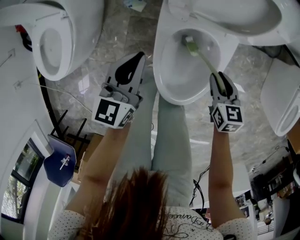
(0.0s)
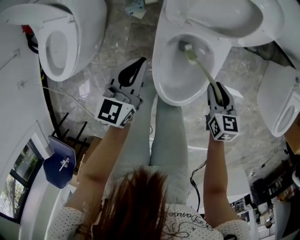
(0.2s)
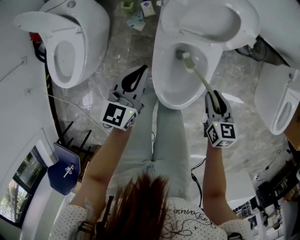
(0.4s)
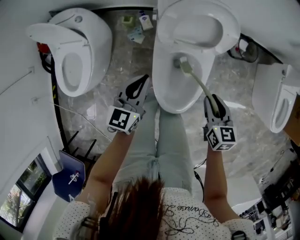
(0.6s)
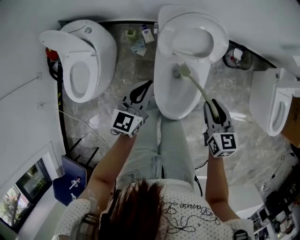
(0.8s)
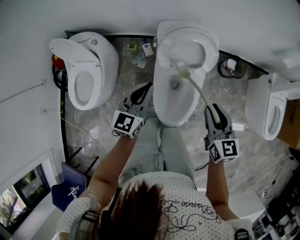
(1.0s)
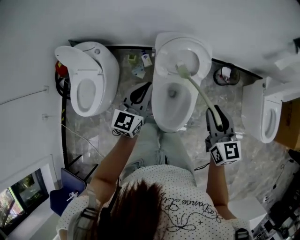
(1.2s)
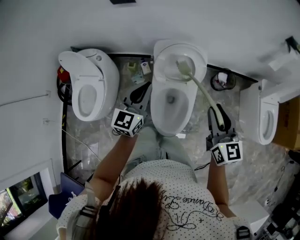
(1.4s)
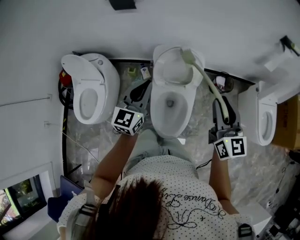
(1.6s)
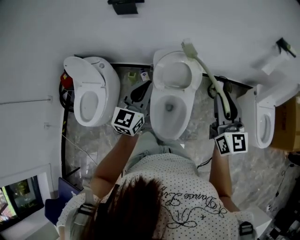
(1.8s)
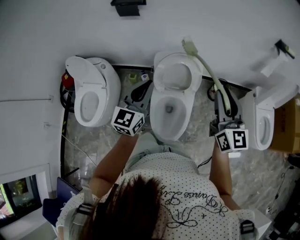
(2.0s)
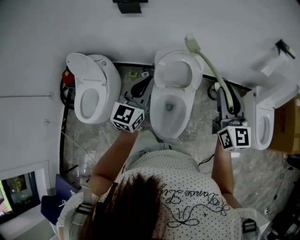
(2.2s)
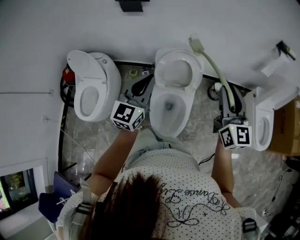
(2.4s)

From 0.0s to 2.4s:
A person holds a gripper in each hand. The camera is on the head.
From 0.0s to 1.2s: Both grippers move upward, roughly 35 cm. The right gripper swivels some 30 degrees.
From 1.2s to 2.4s: The grippers both shift upward by approximately 15 cm. The right gripper turns by roughly 20 degrees.

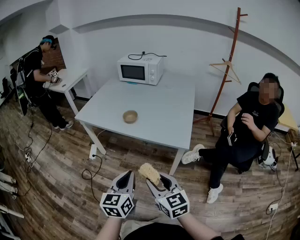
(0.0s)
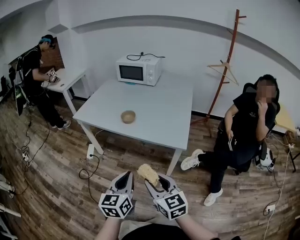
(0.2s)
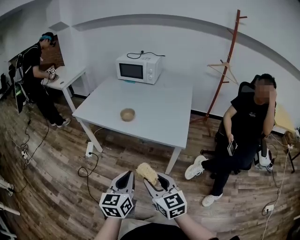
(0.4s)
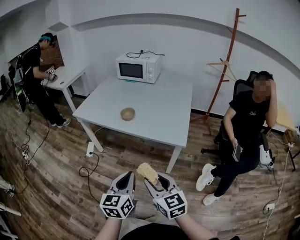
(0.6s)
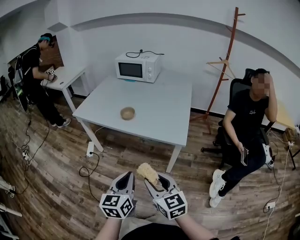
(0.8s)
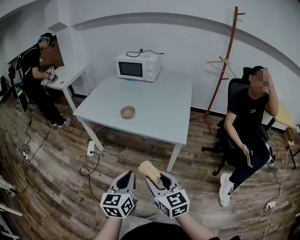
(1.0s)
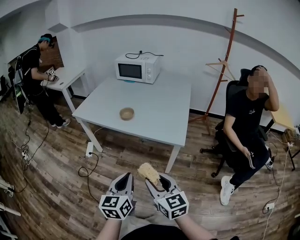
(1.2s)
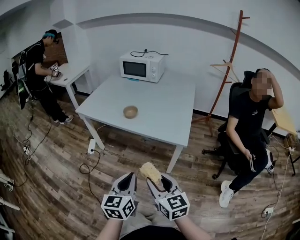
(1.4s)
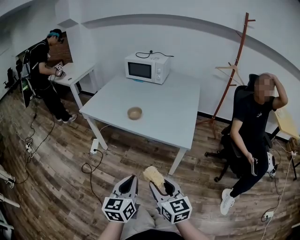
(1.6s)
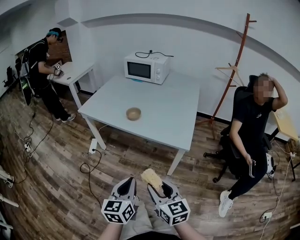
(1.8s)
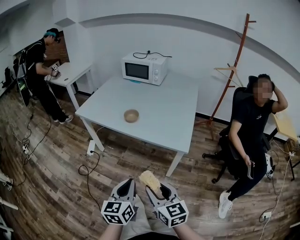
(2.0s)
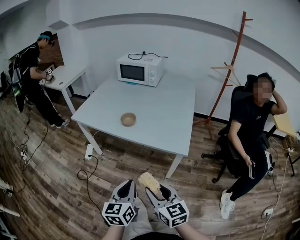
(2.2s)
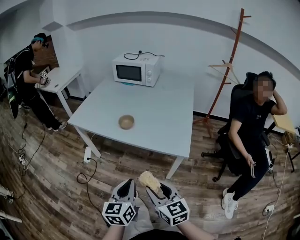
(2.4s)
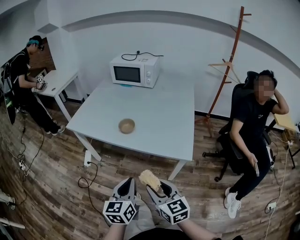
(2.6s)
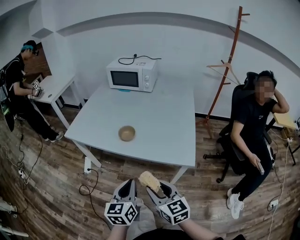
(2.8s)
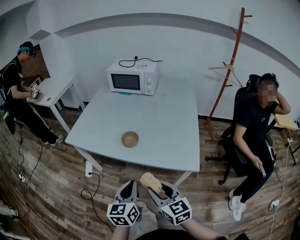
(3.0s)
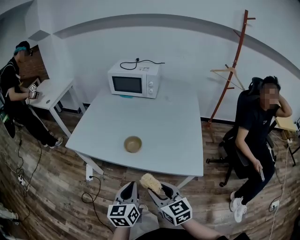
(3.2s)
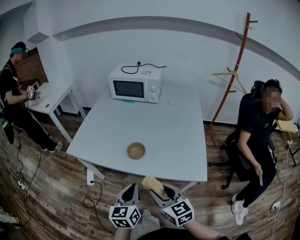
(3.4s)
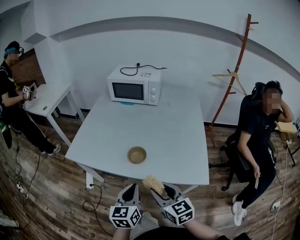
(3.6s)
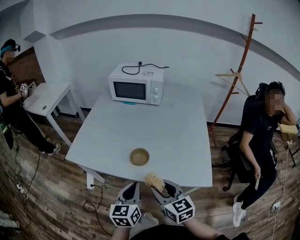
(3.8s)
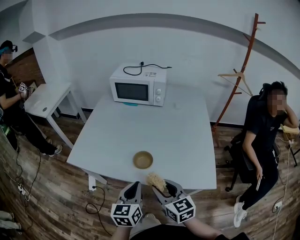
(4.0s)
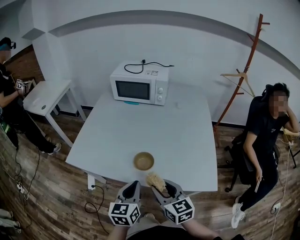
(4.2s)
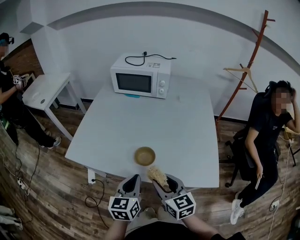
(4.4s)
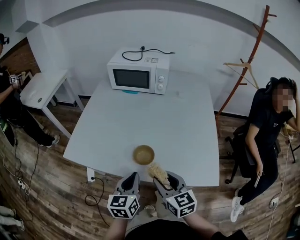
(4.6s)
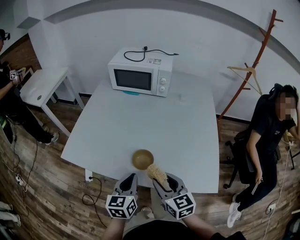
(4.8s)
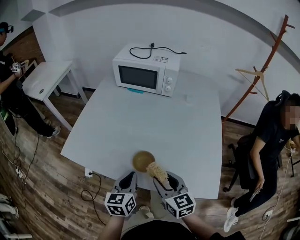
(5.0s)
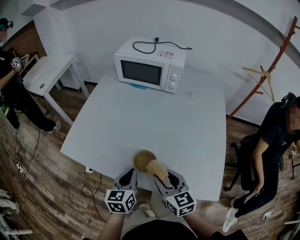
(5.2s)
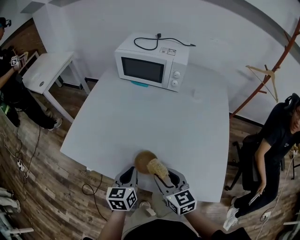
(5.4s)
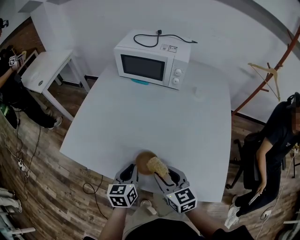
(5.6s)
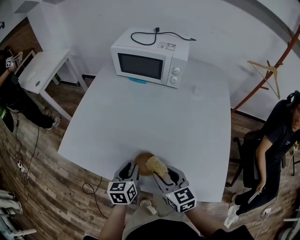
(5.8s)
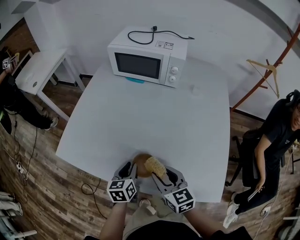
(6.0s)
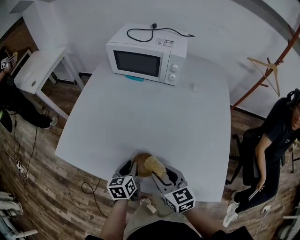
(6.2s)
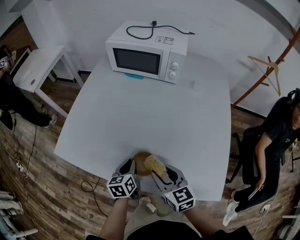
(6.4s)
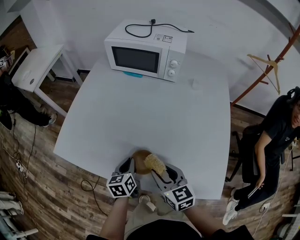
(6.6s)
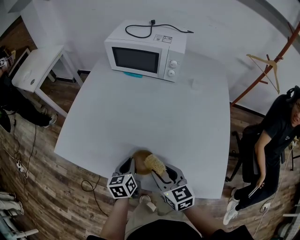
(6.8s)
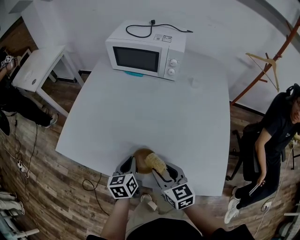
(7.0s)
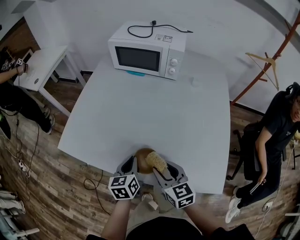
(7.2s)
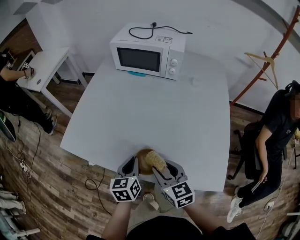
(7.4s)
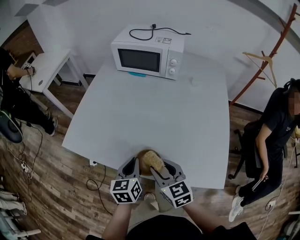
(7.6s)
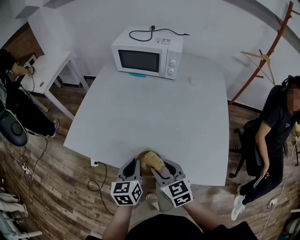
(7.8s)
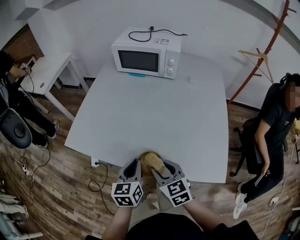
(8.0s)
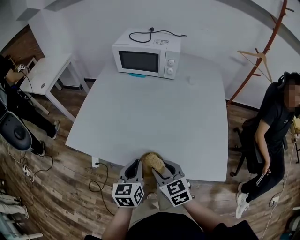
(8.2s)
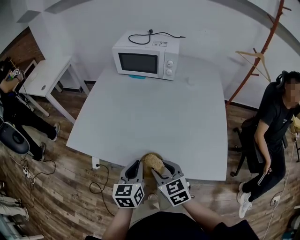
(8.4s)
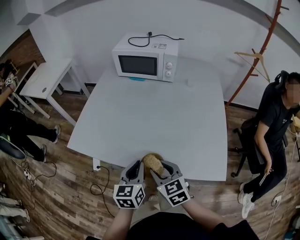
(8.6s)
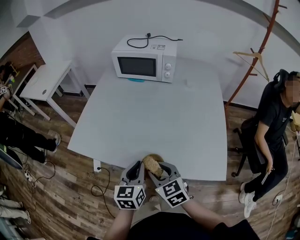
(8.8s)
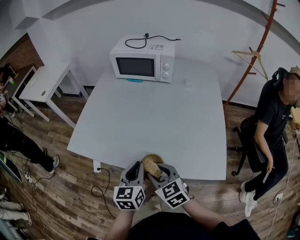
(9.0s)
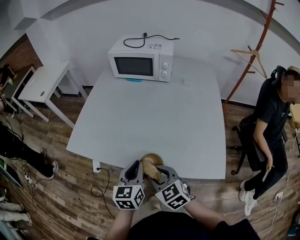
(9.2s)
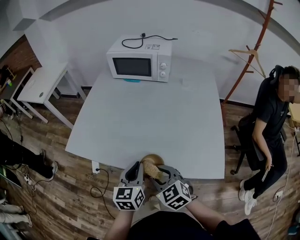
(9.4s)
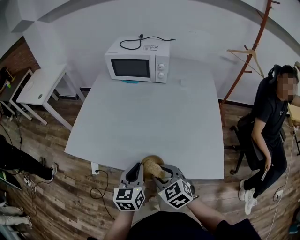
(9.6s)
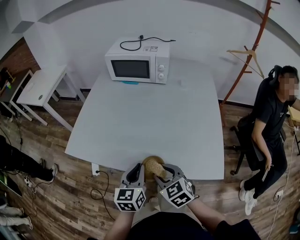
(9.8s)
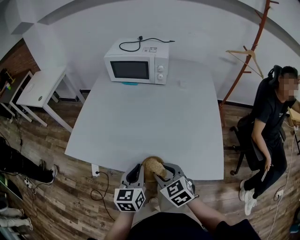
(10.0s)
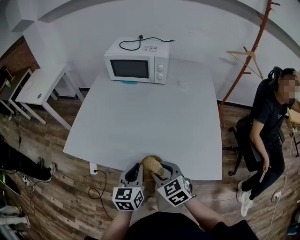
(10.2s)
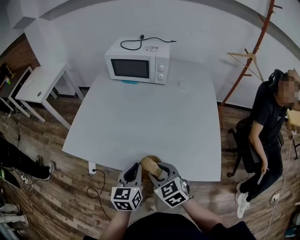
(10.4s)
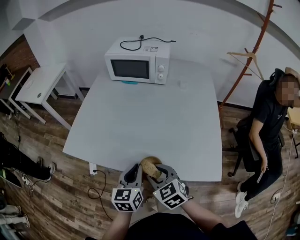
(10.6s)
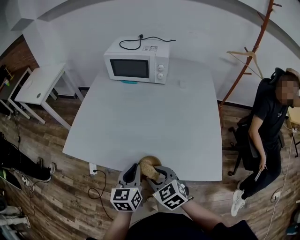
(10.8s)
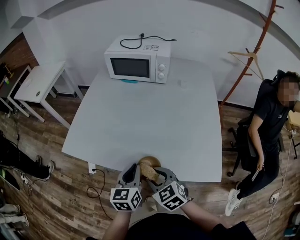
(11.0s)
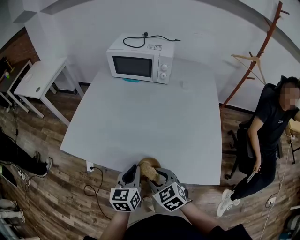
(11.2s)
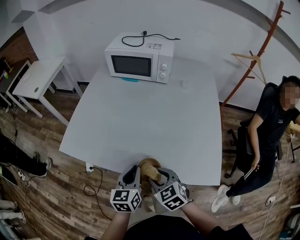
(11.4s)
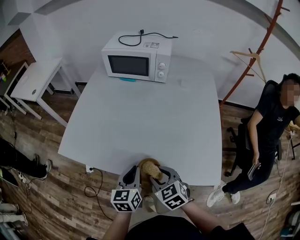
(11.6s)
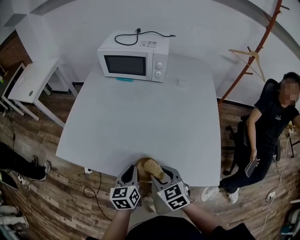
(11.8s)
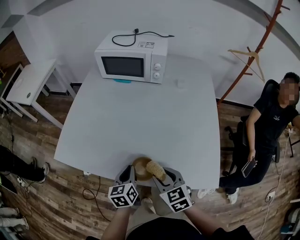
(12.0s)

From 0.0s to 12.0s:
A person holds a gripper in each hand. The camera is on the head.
From 0.0s to 1.6s: The grippers make only small movements.
From 1.6s to 3.0s: The two grippers go roughly 20 cm forward.
From 3.0s to 4.4s: The grippers both shift forward by about 20 cm.
From 4.4s to 6.0s: The left gripper heads downward and forward, covering about 20 cm, swivels some 20 degrees, and opens up, while the right gripper is displaced forward and downward by roughly 15 cm.
From 6.0s to 7.6s: The right gripper changes place by approximately 5 cm; the left gripper goes approximately 10 cm upward and backward.
From 7.6s to 9.0s: The right gripper moves roughly 5 cm. Meanwhile the left gripper goes some 5 cm backward.
From 9.0s to 10.4s: The grippers move only a little.
From 10.4s to 12.0s: The left gripper heads downward and forward, covering some 10 cm; the right gripper ends up roughly 5 cm from where it was.

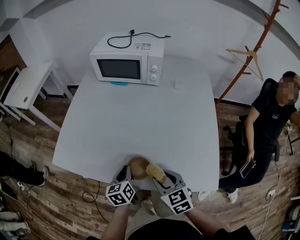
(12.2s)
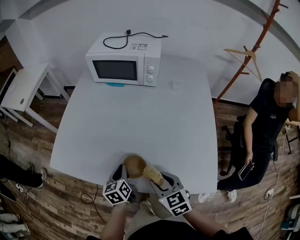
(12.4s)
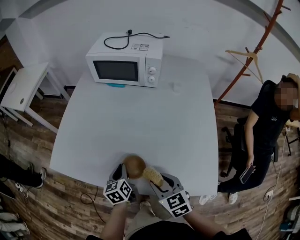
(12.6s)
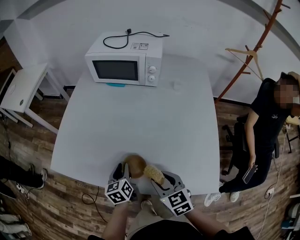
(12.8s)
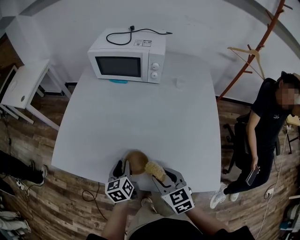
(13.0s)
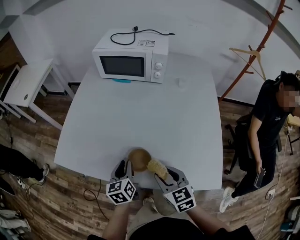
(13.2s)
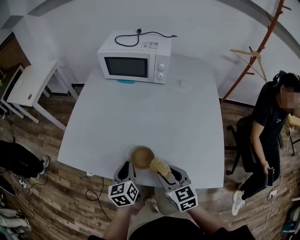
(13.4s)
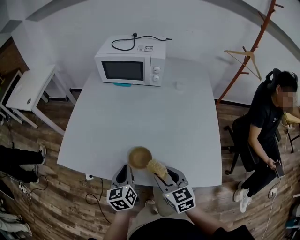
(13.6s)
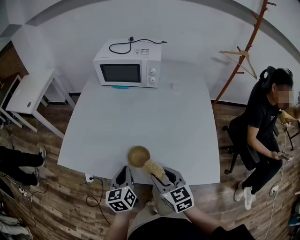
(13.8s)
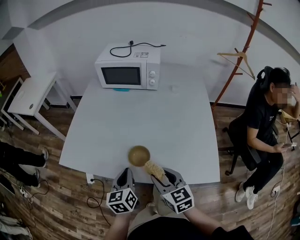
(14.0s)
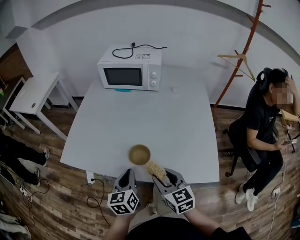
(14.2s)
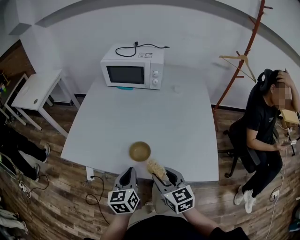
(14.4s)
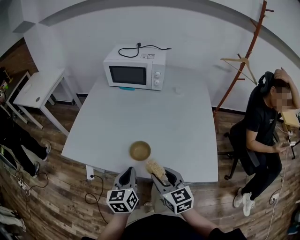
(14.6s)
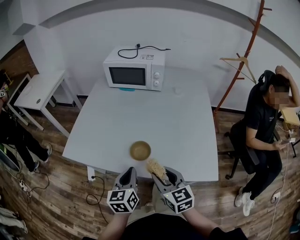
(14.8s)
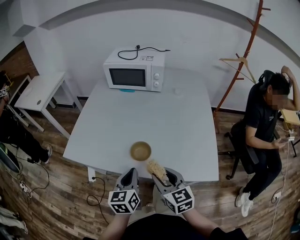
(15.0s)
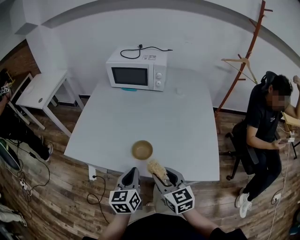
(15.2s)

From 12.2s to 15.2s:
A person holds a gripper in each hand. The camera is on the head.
From 12.2s to 13.8s: The left gripper moves upward, some 5 cm.
From 13.8s to 15.2s: The left gripper moves backward, some 5 cm. The right gripper changes place by some 5 cm.

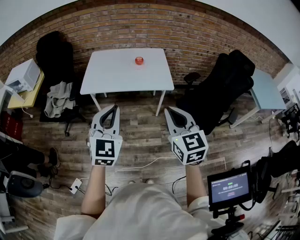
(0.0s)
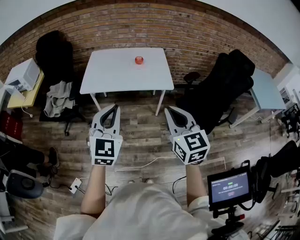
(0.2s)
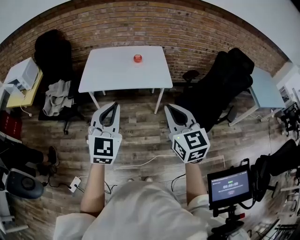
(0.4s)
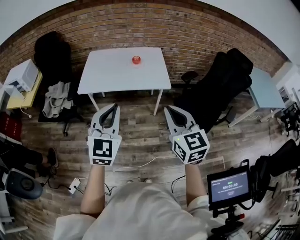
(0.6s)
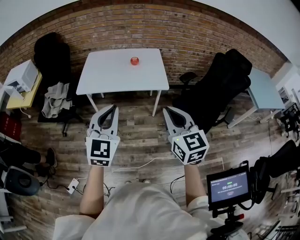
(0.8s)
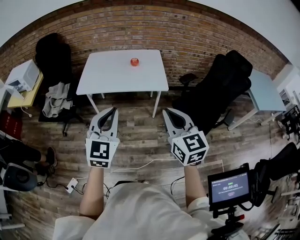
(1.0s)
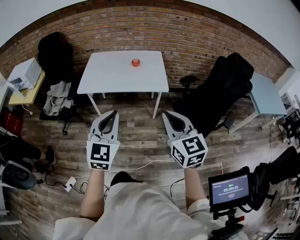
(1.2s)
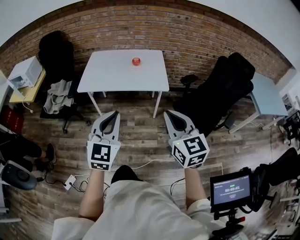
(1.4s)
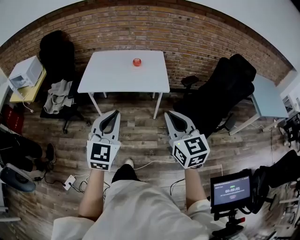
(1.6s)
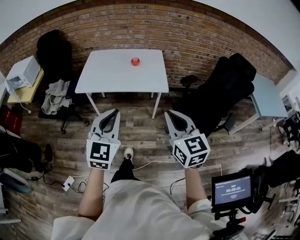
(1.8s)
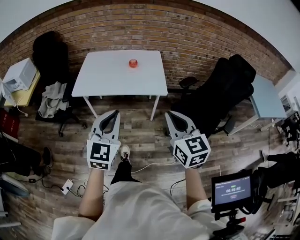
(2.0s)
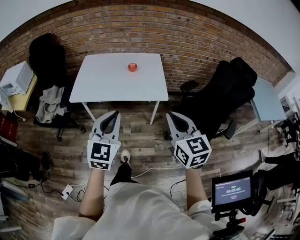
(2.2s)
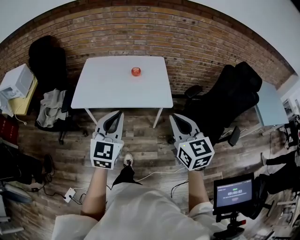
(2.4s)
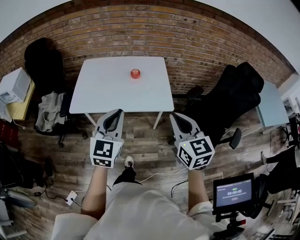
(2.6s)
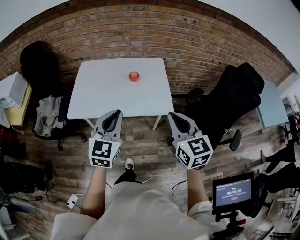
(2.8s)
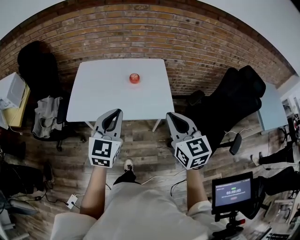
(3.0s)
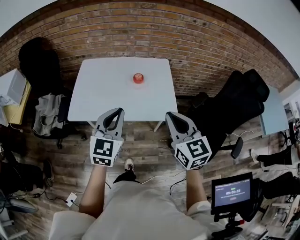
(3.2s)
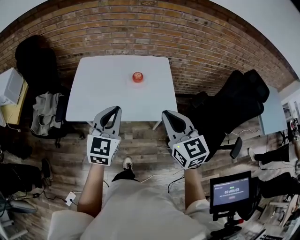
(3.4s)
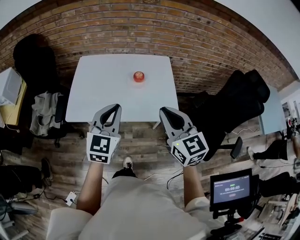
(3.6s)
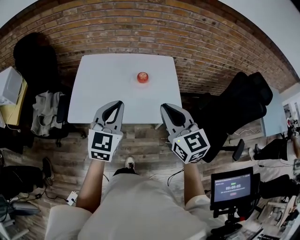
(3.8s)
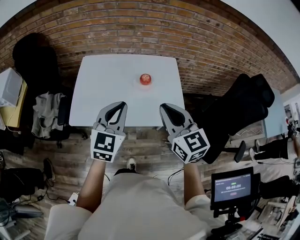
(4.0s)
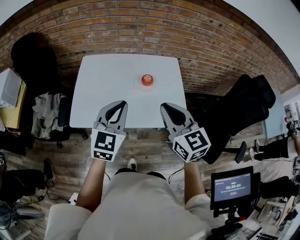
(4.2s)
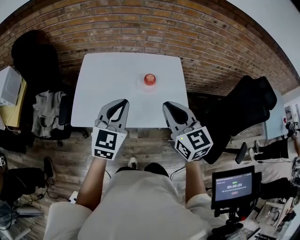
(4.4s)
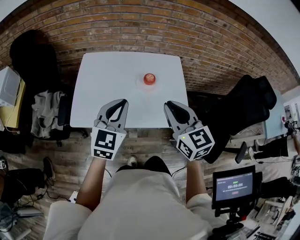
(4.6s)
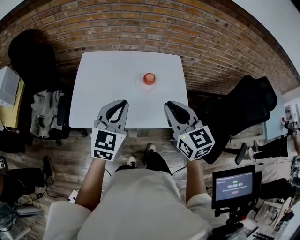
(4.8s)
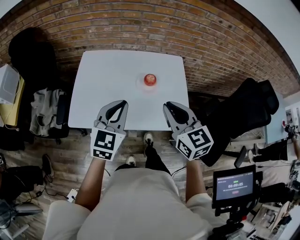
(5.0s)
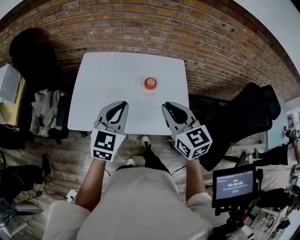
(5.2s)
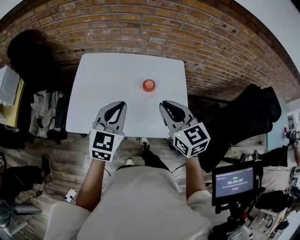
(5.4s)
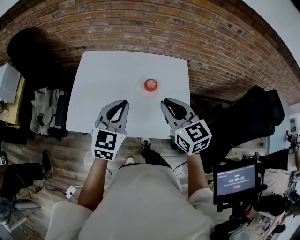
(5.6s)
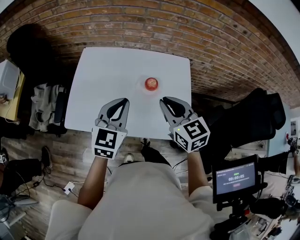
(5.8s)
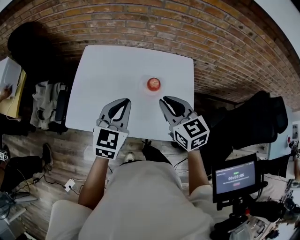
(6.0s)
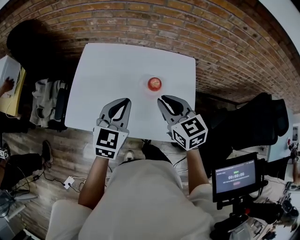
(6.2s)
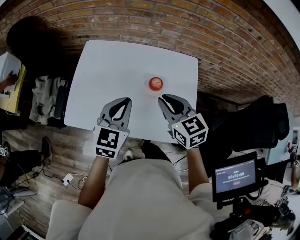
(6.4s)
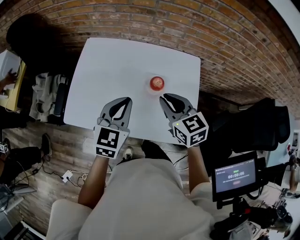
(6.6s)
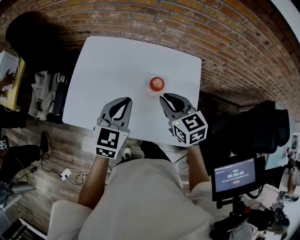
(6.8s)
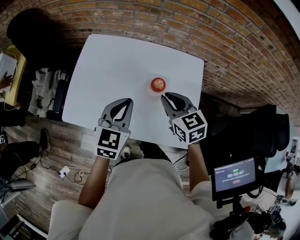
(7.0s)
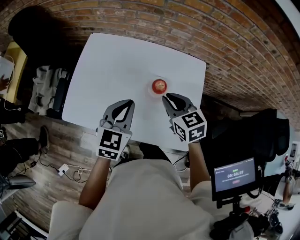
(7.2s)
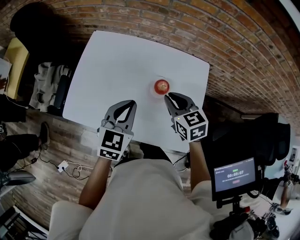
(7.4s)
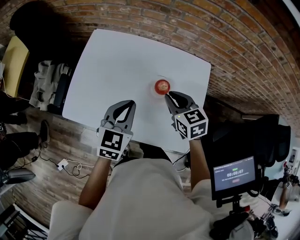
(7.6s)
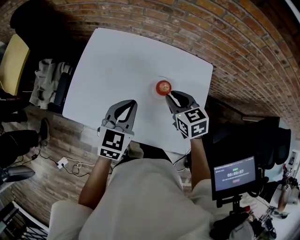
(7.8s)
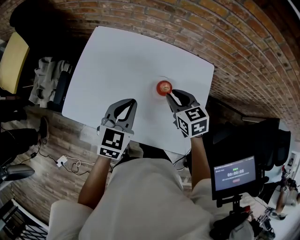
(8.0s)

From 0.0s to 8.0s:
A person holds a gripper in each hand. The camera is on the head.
From 0.0s to 1.6s: The two grippers go about 5 cm to the right.
From 1.6s to 3.2s: The grippers both shift forward by approximately 30 cm.
From 3.2s to 4.8s: The grippers both shift forward and to the left by roughly 15 cm.
From 4.8s to 6.4s: The grippers both shift forward and downward by roughly 15 cm.
From 6.4s to 8.0s: The right gripper is displaced downward and forward by about 15 cm, while the left gripper shifts about 5 cm downward.
